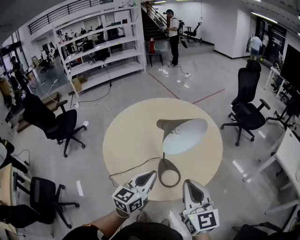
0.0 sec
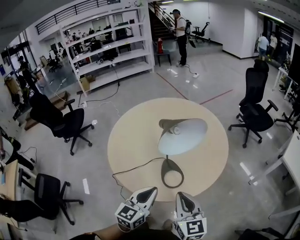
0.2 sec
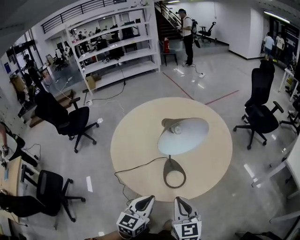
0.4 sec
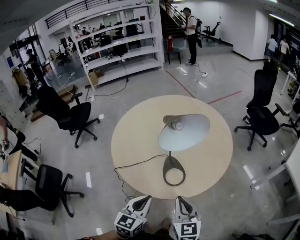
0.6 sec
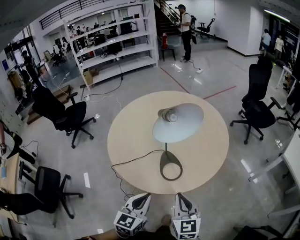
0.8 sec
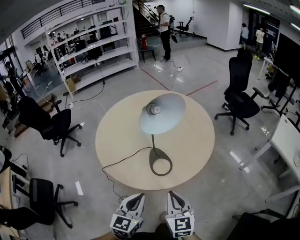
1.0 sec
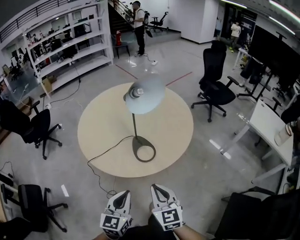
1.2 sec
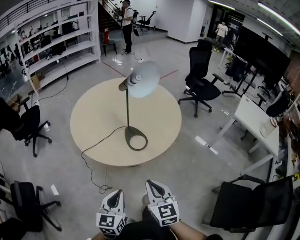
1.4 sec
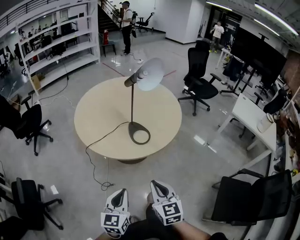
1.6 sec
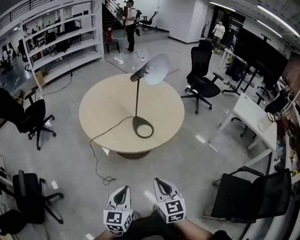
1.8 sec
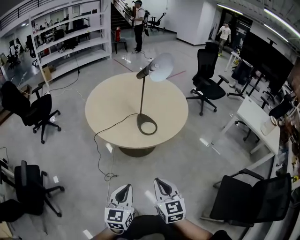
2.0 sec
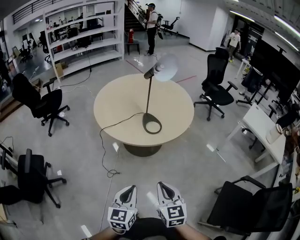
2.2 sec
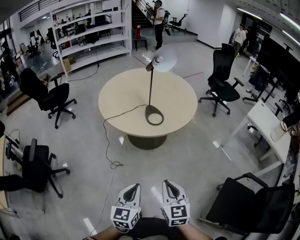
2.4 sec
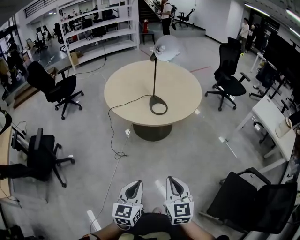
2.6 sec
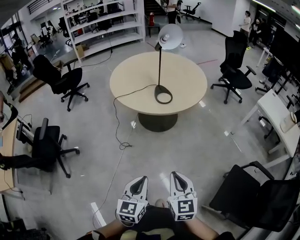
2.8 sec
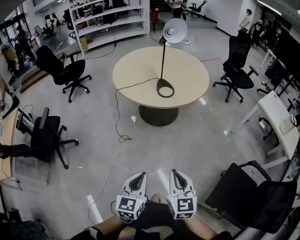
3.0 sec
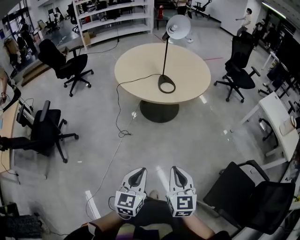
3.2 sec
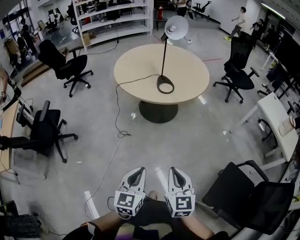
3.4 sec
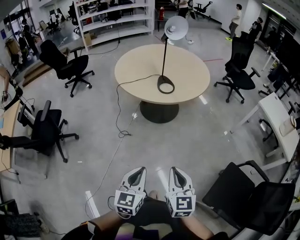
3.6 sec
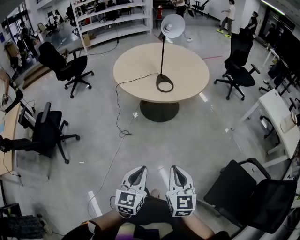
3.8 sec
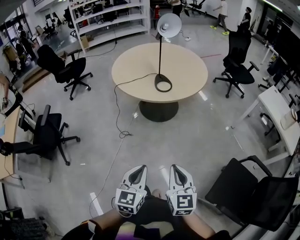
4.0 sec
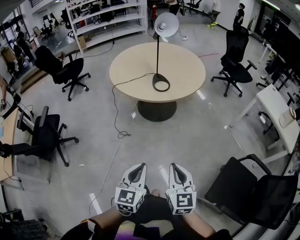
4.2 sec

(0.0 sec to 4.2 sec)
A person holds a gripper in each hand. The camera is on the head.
0.0 sec - 1.4 sec: The right gripper heads backward and downward, covering approximately 30 cm; the left gripper moves backward, about 30 cm.
1.4 sec - 2.8 sec: Both grippers travel together backward, some 35 cm.
2.8 sec - 4.2 sec: The right gripper shifts by some 5 cm. The left gripper shifts by roughly 5 cm.

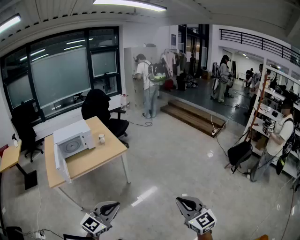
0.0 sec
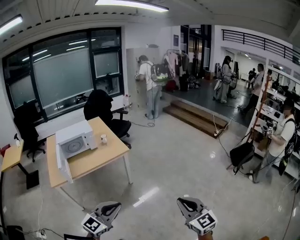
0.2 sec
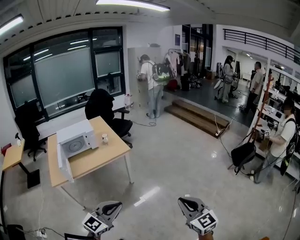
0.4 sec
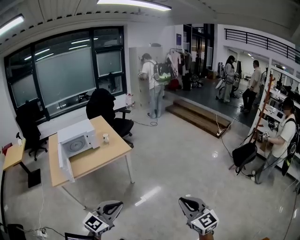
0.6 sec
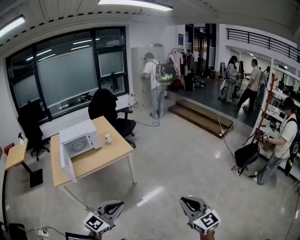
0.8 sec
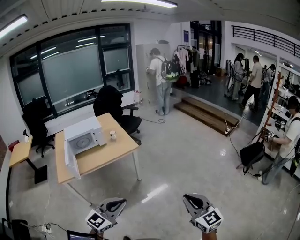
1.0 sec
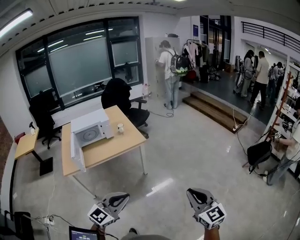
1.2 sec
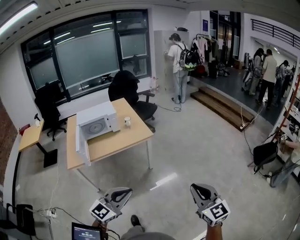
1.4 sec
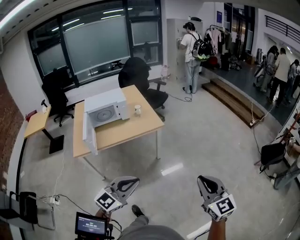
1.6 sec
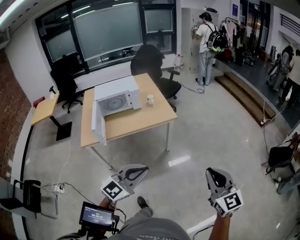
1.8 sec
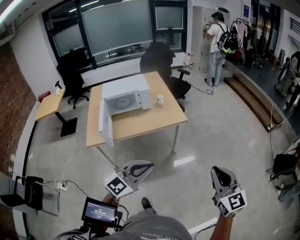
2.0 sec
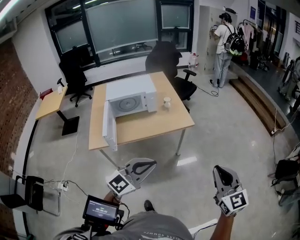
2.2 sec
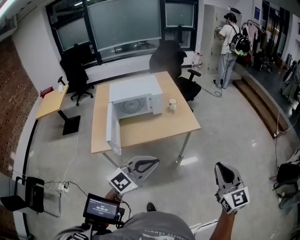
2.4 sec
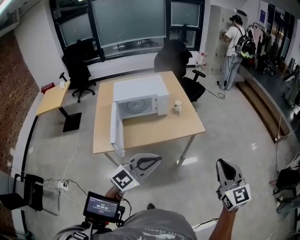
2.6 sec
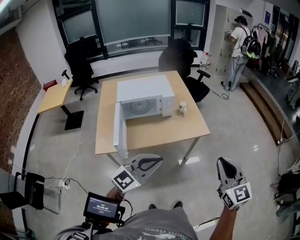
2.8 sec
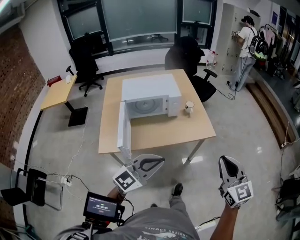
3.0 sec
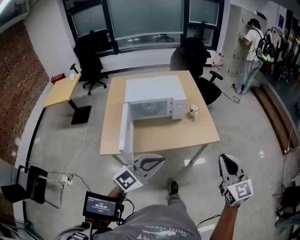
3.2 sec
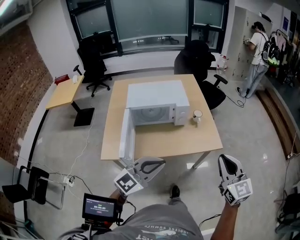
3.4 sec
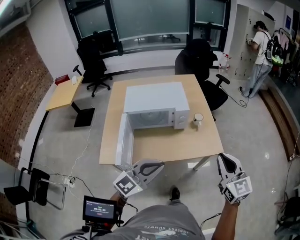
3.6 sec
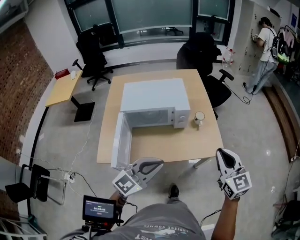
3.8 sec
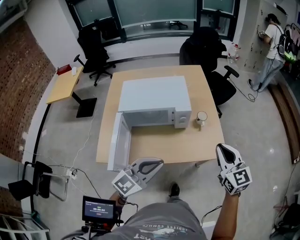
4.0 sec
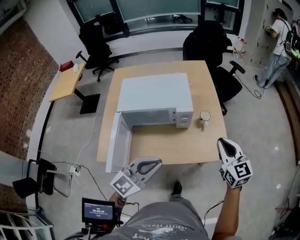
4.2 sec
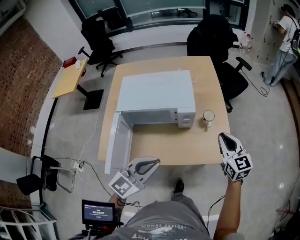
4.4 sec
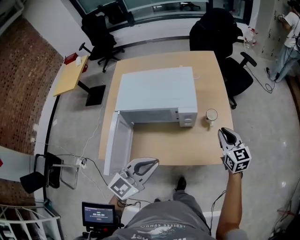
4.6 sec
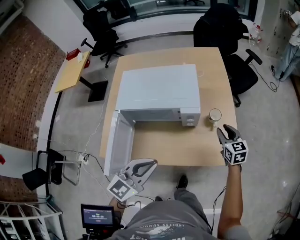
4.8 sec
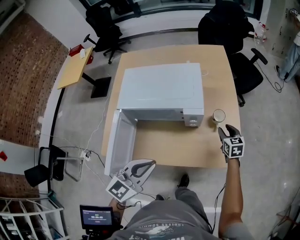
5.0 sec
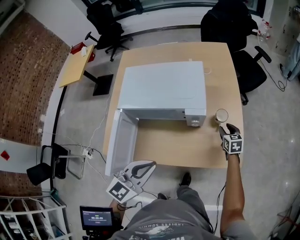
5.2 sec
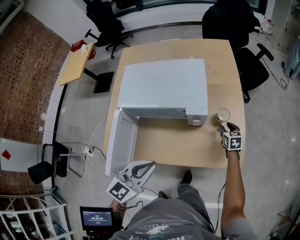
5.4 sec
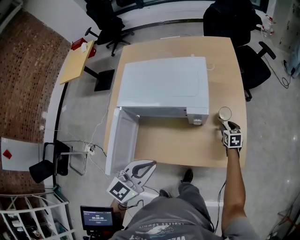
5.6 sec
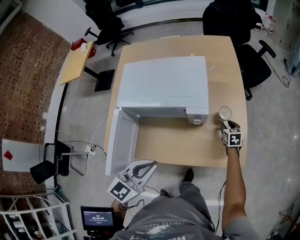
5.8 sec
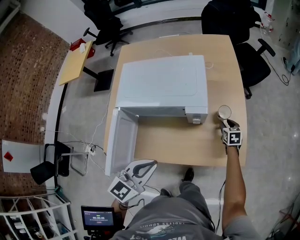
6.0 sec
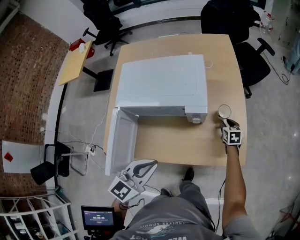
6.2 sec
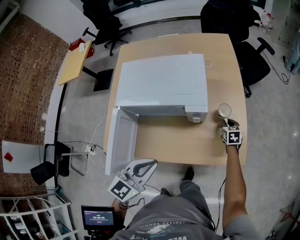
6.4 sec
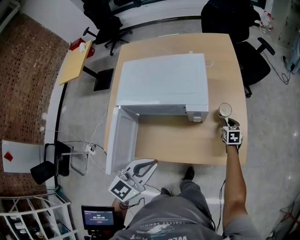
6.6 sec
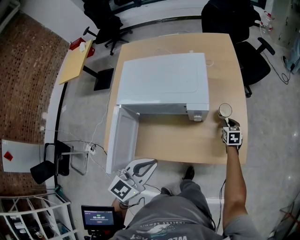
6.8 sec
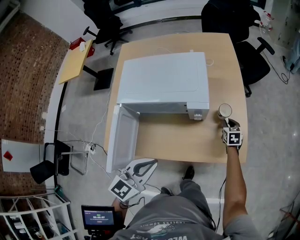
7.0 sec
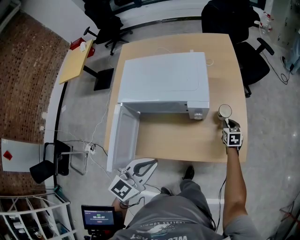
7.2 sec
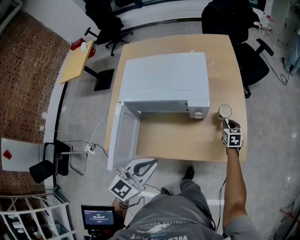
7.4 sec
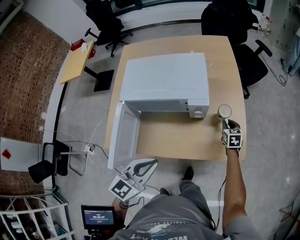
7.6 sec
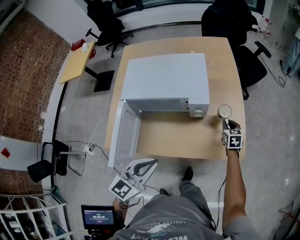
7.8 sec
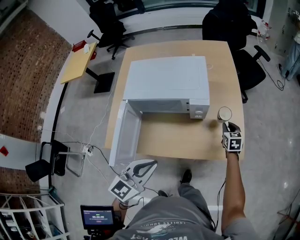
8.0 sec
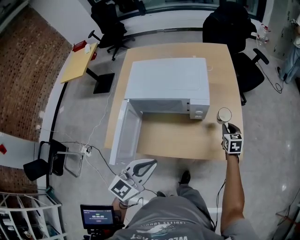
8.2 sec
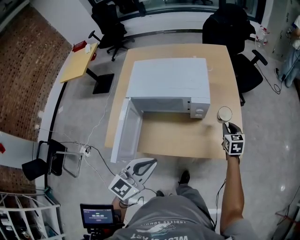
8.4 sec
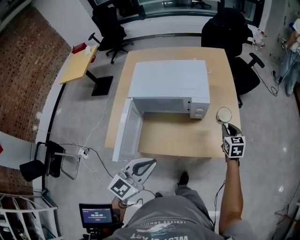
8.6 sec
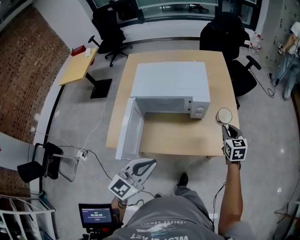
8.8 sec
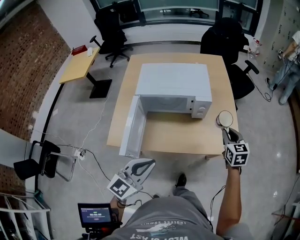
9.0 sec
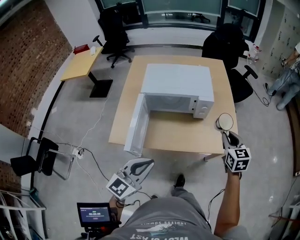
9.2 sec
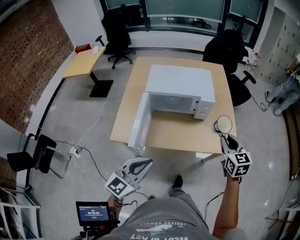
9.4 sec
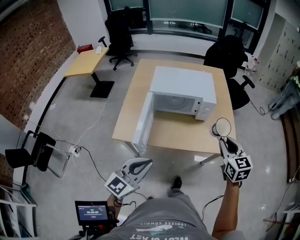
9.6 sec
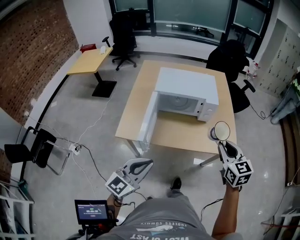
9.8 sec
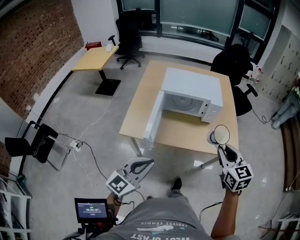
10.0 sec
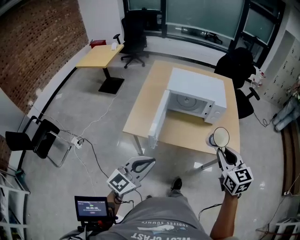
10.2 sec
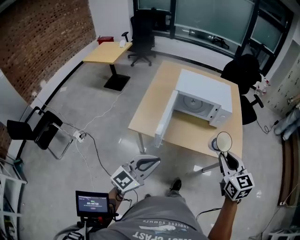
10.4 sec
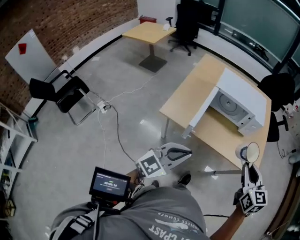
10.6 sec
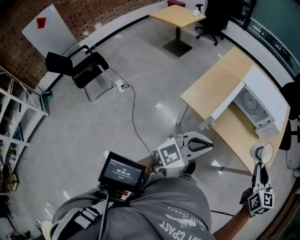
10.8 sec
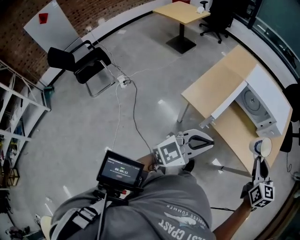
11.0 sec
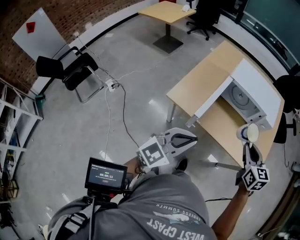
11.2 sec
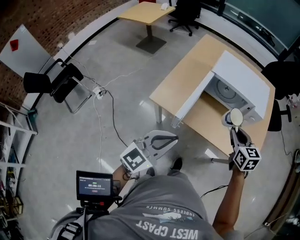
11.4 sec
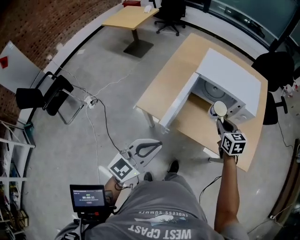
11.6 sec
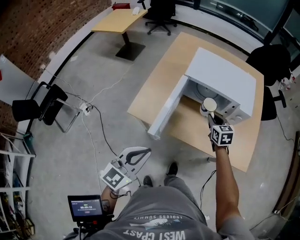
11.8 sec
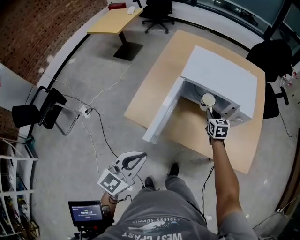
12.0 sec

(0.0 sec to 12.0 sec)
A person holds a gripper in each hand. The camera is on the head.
0.0 sec - 1.6 sec: The right gripper heads forward and to the left, covering roughly 10 cm. Meanwhile the left gripper moves forward, roughly 5 cm.
1.6 sec - 3.0 sec: Both grippers are carried forward and to the left, approximately 40 cm.
3.0 sec - 4.4 sec: The left gripper shifts about 30 cm forward, and rotates roughly 20 degrees. Meanwhile the right gripper heads forward, covering some 40 cm.
4.4 sec - 6.0 sec: The left gripper travels downward and forward by about 10 cm. The right gripper heads downward and forward, covering about 35 cm, angles its fingers downward, by approximately 30 degrees, and opens up.
6.0 sec - 7.6 sec: The right gripper ends up about 5 cm from where it was, and closes its fingers.
7.6 sec - 9.0 sec: The right gripper moves upward and backward, some 25 cm; the left gripper goes about 15 cm backward and to the left.
9.0 sec - 10.4 sec: The right gripper moves backward, to the left and upward, approximately 35 cm, and changes its angle by about 20 degrees. Meanwhile the left gripper travels backward and to the left by about 20 cm.
10.4 sec - 12.0 sec: The right gripper heads forward and downward, covering approximately 50 cm, while the left gripper goes approximately 15 cm forward, and turns by roughly 20 degrees.

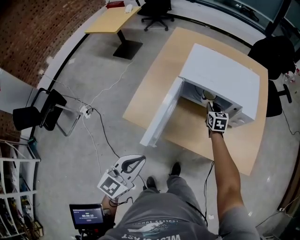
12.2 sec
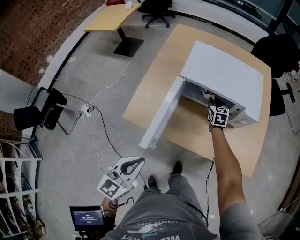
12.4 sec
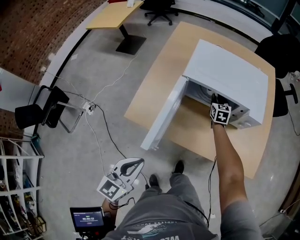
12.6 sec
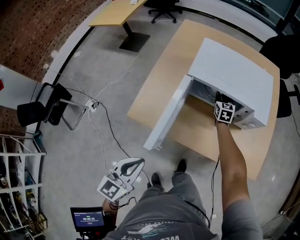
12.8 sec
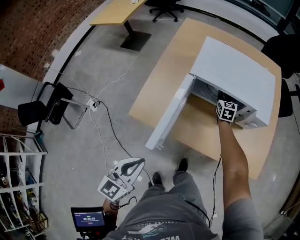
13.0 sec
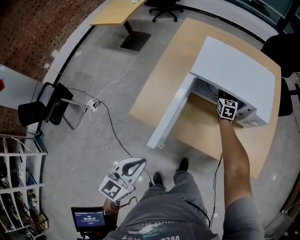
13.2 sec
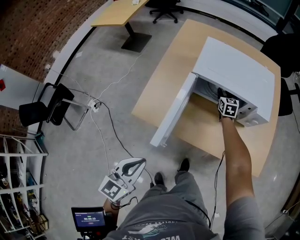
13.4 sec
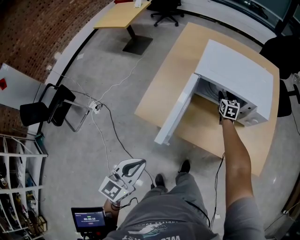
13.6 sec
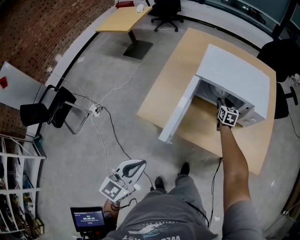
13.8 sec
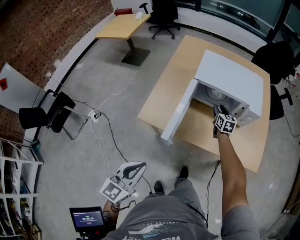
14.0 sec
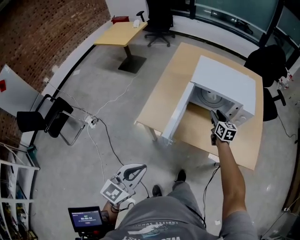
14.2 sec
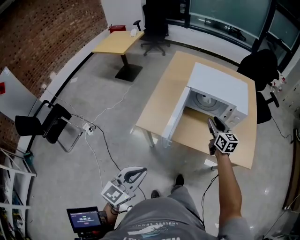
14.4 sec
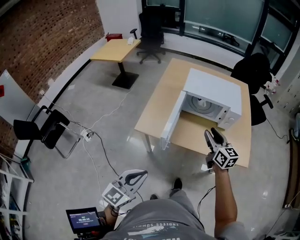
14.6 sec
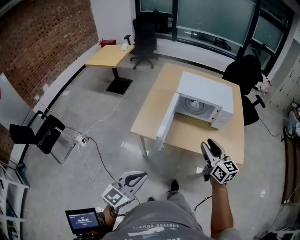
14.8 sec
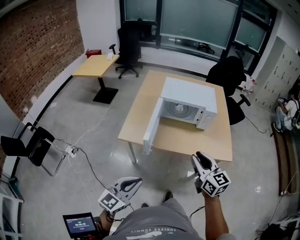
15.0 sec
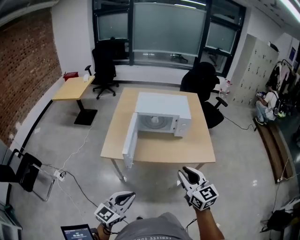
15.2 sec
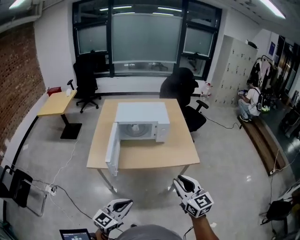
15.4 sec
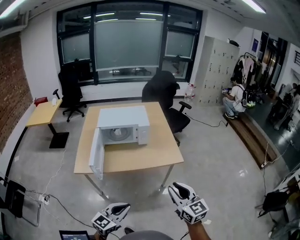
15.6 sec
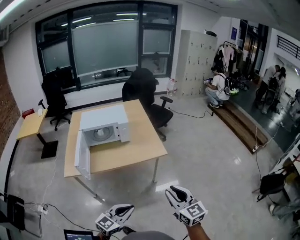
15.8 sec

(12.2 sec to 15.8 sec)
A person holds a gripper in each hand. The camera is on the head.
12.2 sec - 14.0 sec: The right gripper goes forward and returns, roughly 10 cm each way, and opens up; the left gripper shifts roughly 10 cm backward and to the left.
14.0 sec - 15.8 sec: Both grippers are carried some 60 cm. The left gripper rotates about 50 degrees. The right gripper swivels about 20 degrees.

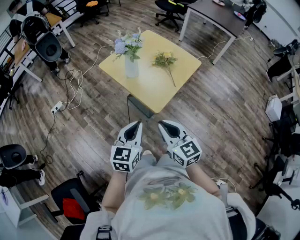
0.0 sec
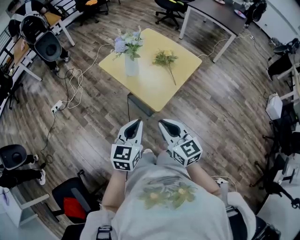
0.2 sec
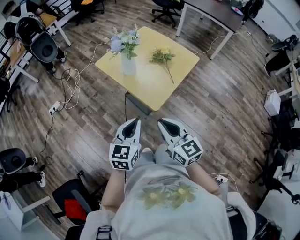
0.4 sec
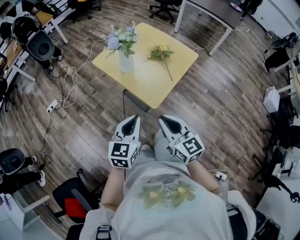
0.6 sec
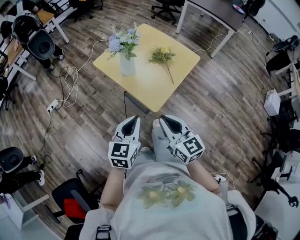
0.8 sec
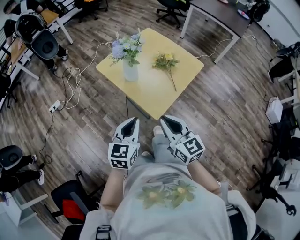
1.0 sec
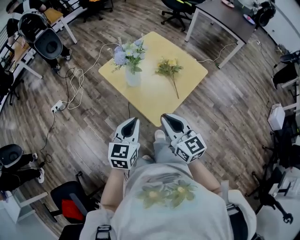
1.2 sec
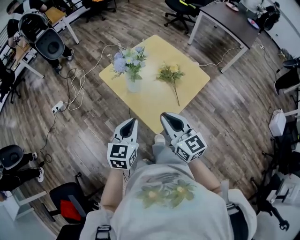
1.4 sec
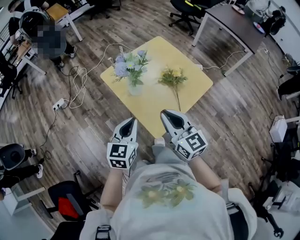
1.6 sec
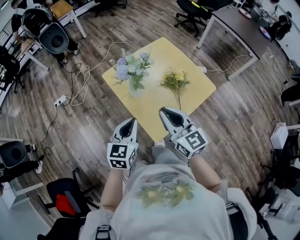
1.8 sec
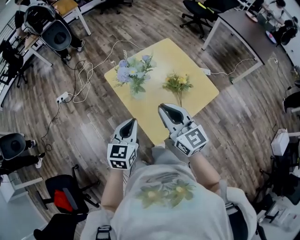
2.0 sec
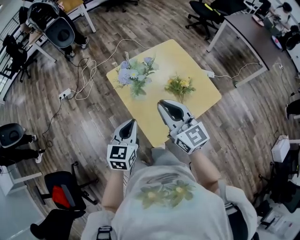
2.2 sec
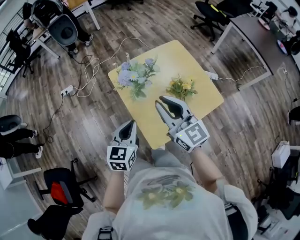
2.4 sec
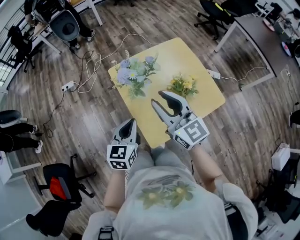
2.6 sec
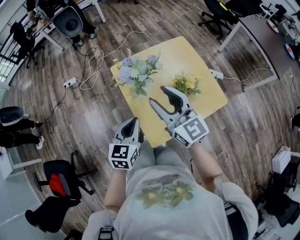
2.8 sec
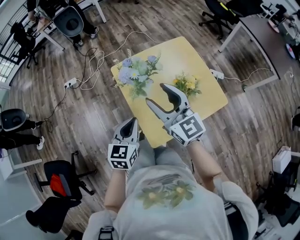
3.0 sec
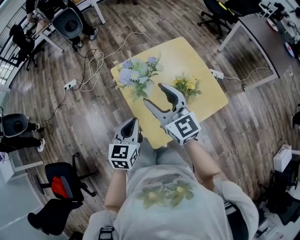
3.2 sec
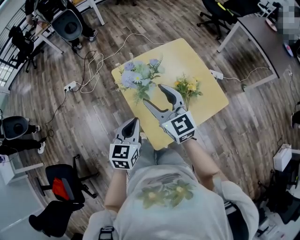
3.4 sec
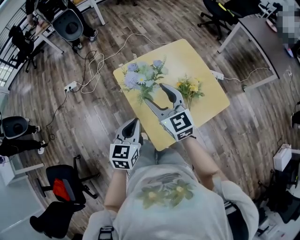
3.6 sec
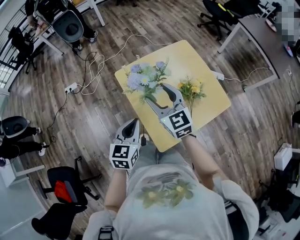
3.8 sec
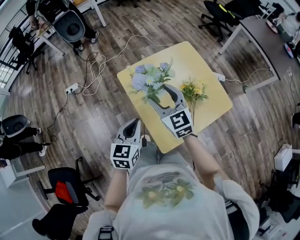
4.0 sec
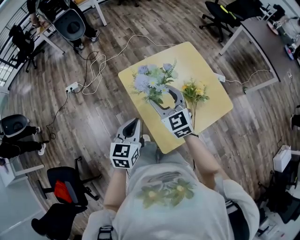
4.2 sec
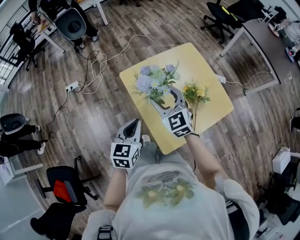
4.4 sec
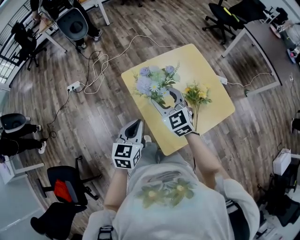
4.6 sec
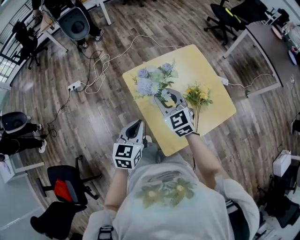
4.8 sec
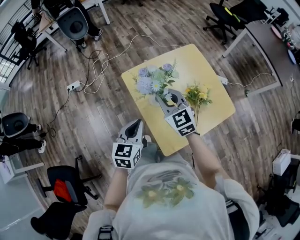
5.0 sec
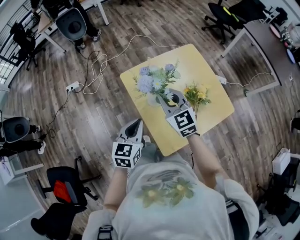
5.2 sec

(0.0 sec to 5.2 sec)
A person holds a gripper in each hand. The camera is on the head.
0.0 sec - 1.8 sec: Both grippers move forward, approximately 30 cm.
1.8 sec - 3.4 sec: The left gripper moves forward, approximately 5 cm. Meanwhile the right gripper goes about 15 cm forward, and opens up.
3.4 sec - 5.2 sec: The left gripper travels to the left and forward by some 10 cm, while the right gripper travels forward by about 5 cm, and closes.
